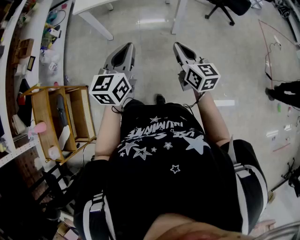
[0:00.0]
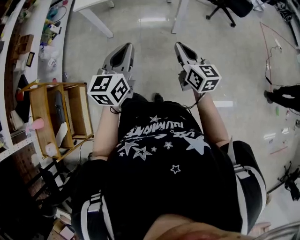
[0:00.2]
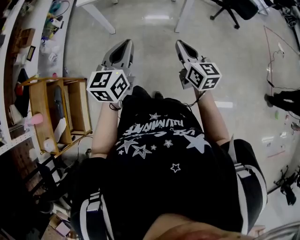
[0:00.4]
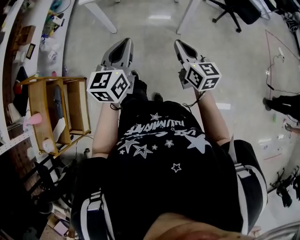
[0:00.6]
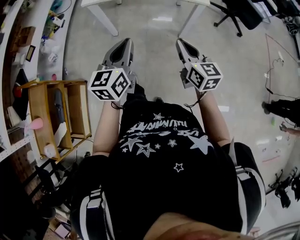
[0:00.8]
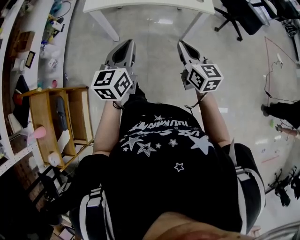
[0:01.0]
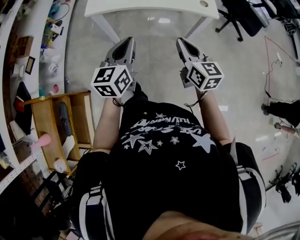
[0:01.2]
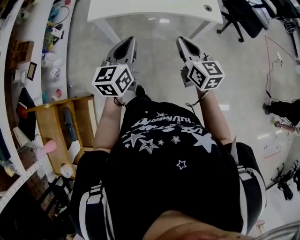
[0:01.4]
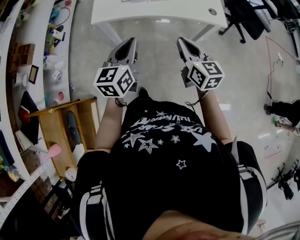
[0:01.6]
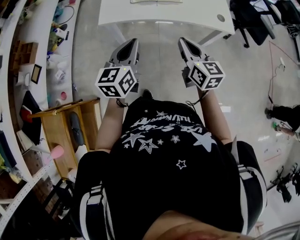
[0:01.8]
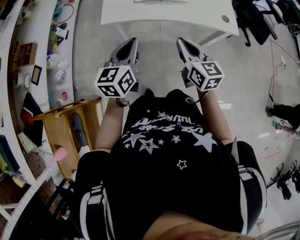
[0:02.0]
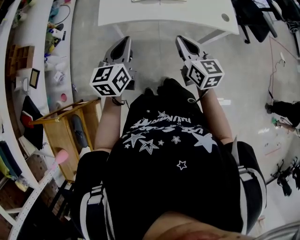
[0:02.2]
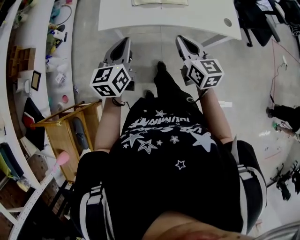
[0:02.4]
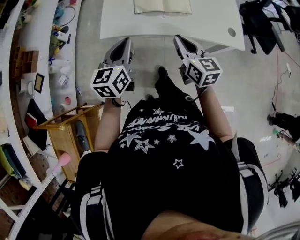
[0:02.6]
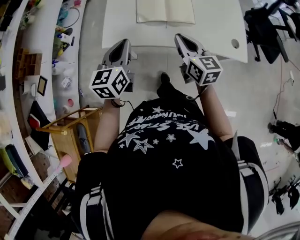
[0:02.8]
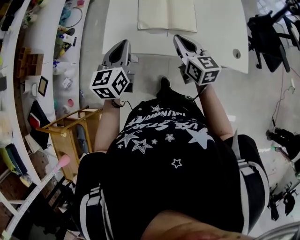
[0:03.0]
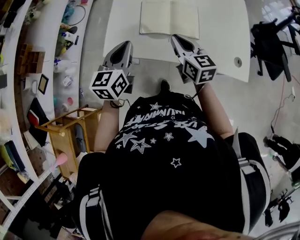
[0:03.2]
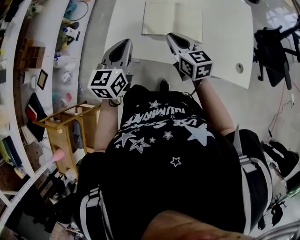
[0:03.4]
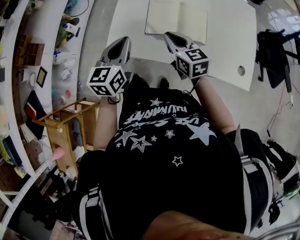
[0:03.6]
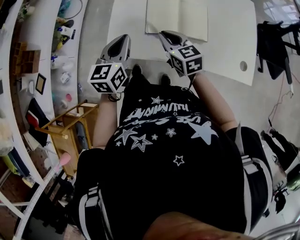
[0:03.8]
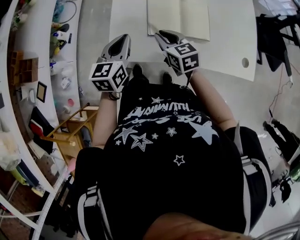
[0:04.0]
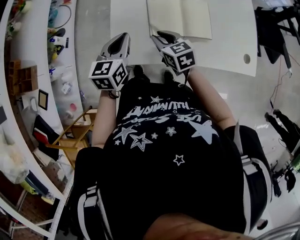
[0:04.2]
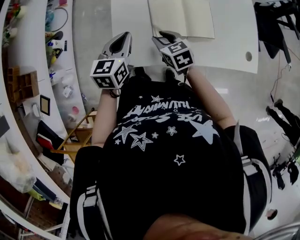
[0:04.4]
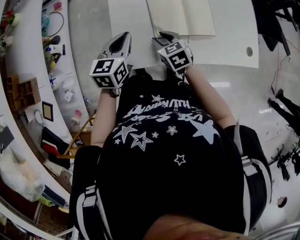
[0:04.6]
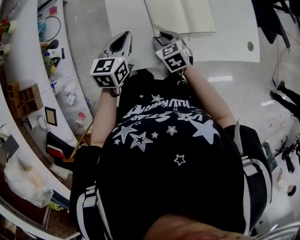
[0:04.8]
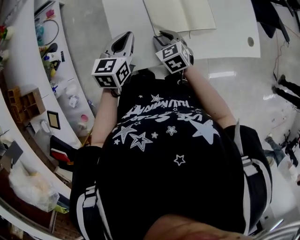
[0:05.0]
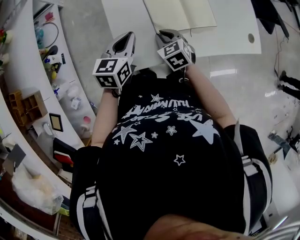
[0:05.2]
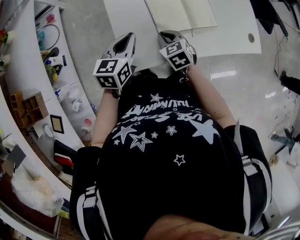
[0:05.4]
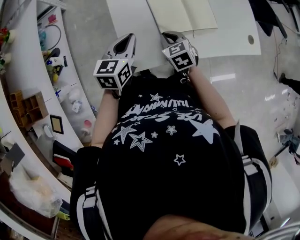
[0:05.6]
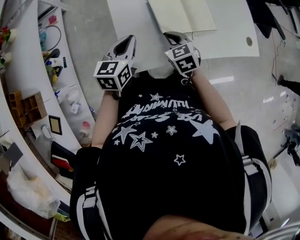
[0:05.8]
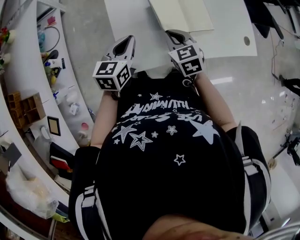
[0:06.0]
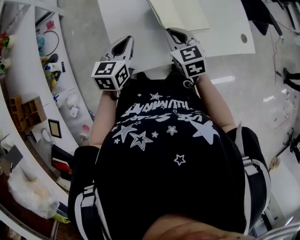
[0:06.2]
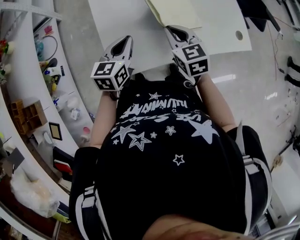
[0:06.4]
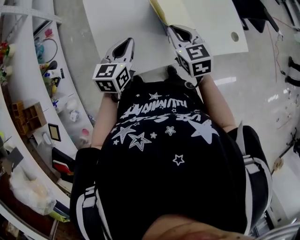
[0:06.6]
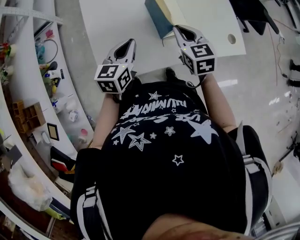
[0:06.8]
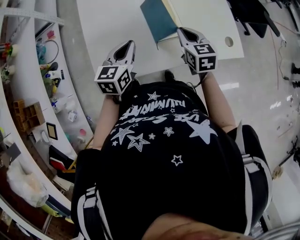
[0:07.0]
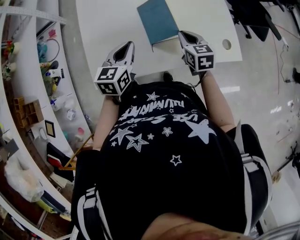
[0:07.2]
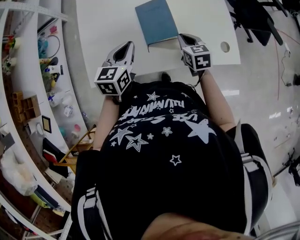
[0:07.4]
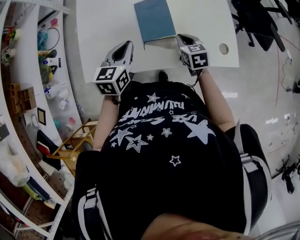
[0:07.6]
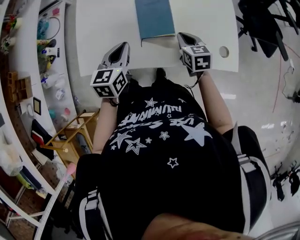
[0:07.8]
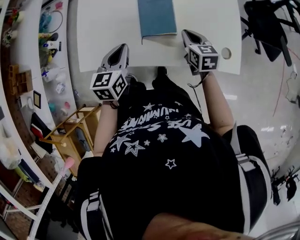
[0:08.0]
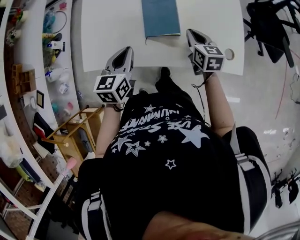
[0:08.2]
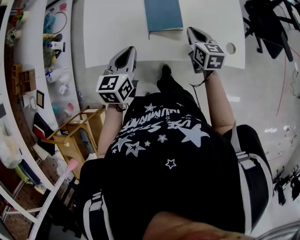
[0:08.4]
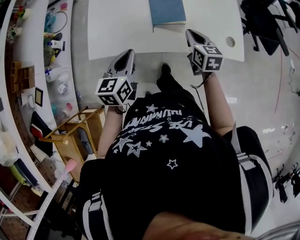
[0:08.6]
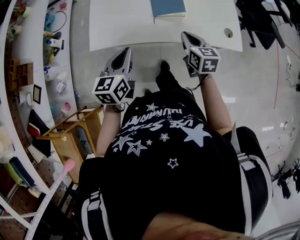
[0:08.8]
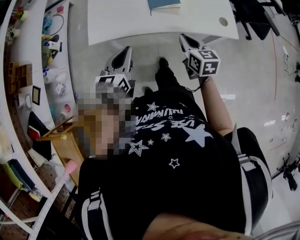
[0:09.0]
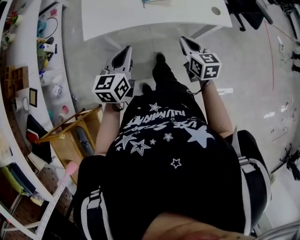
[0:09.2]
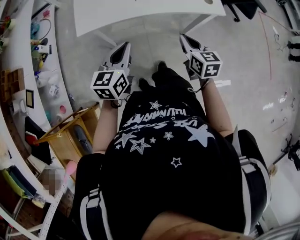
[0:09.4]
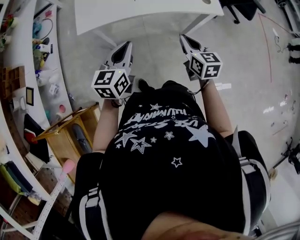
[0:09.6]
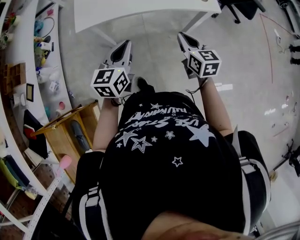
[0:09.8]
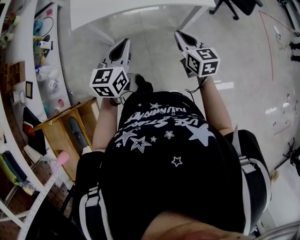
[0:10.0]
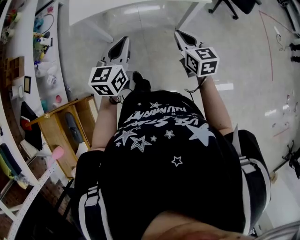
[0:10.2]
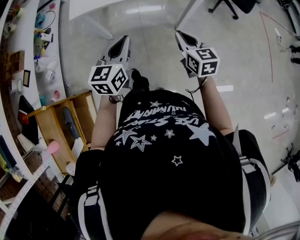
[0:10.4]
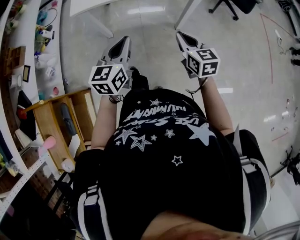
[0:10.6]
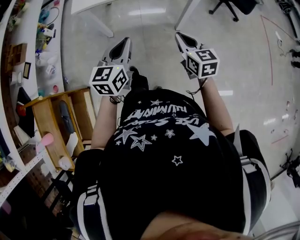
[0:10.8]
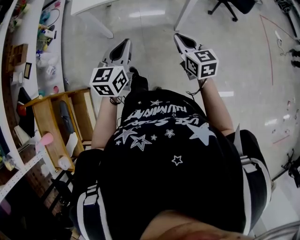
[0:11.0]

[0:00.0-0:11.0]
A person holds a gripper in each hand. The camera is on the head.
0:00.0 to 0:01.6: The two grippers go roughly 30 cm forward and to the left.
0:01.6 to 0:03.2: Both grippers travel together forward, roughly 30 cm.
0:03.2 to 0:04.8: The right gripper is displaced to the left, downward and forward by some 20 cm, tilts its fingers roughly 30 degrees downward, and opens up; the left gripper goes roughly 20 cm forward, downward and to the left, and swivels roughly 20 degrees.
0:04.8 to 0:06.2: The right gripper shifts roughly 10 cm upward, and closes its fingers.
0:06.2 to 0:07.8: Both grippers move to the right, approximately 25 cm.
0:07.8 to 0:09.4: Both grippers travel together backward, some 30 cm.
0:09.4 to 0:11.0: Both grippers travel together backward and to the right, some 25 cm.

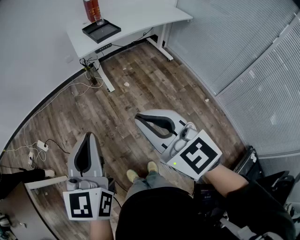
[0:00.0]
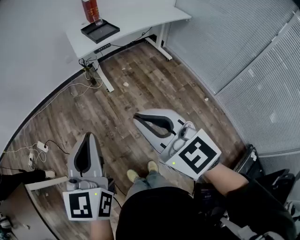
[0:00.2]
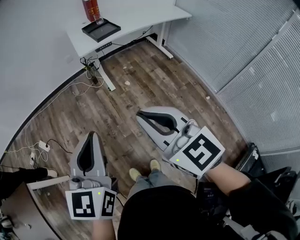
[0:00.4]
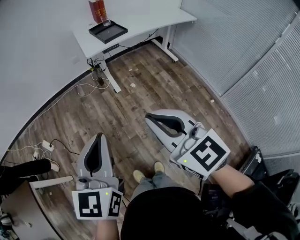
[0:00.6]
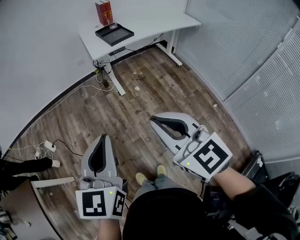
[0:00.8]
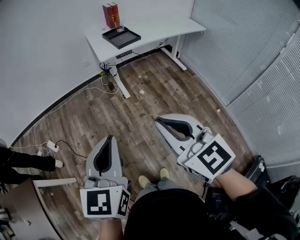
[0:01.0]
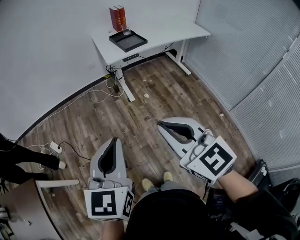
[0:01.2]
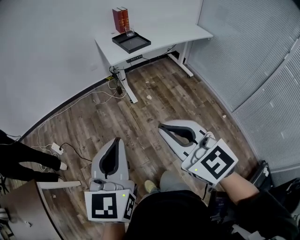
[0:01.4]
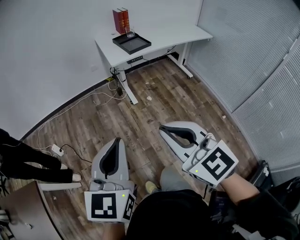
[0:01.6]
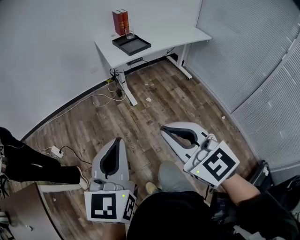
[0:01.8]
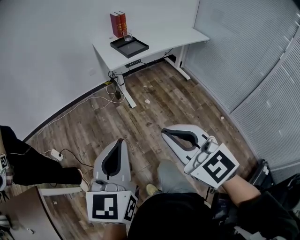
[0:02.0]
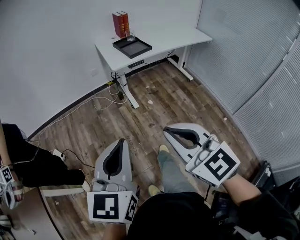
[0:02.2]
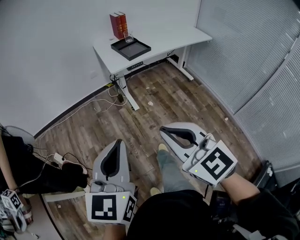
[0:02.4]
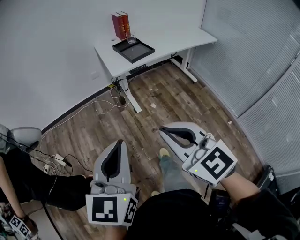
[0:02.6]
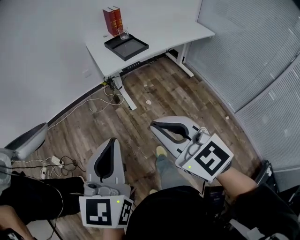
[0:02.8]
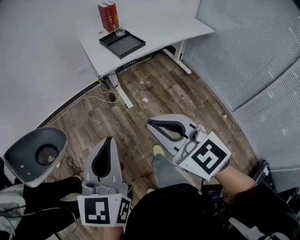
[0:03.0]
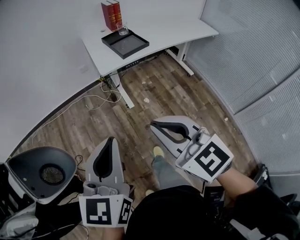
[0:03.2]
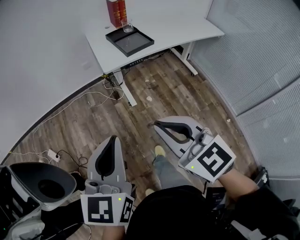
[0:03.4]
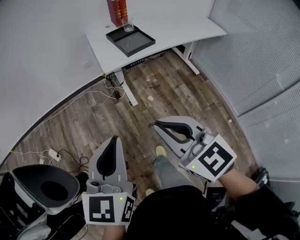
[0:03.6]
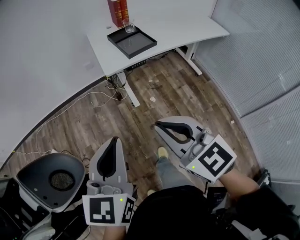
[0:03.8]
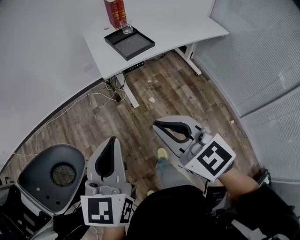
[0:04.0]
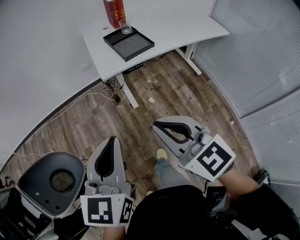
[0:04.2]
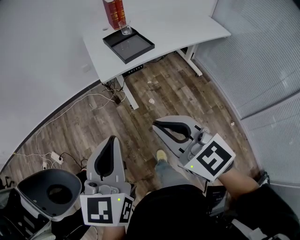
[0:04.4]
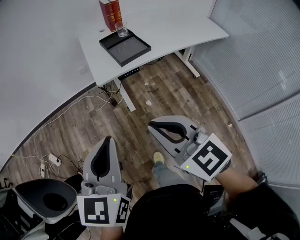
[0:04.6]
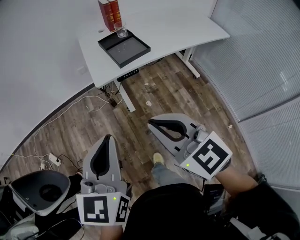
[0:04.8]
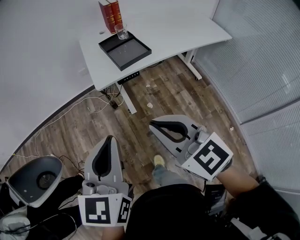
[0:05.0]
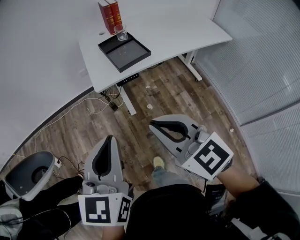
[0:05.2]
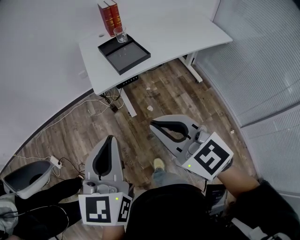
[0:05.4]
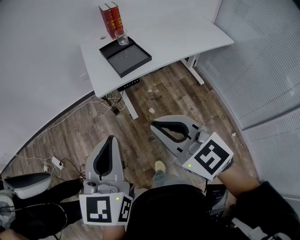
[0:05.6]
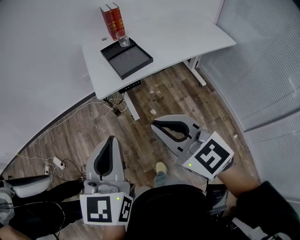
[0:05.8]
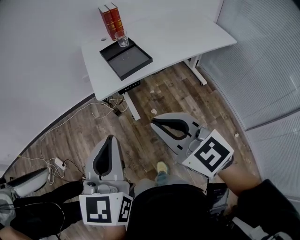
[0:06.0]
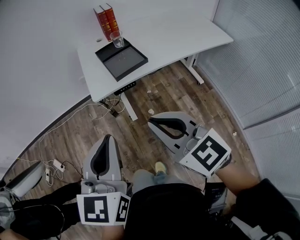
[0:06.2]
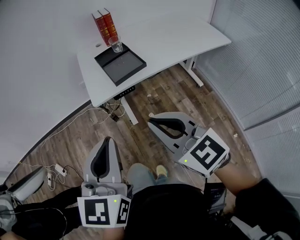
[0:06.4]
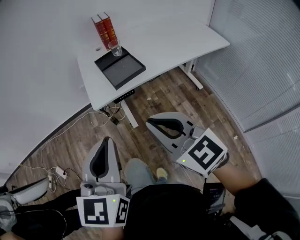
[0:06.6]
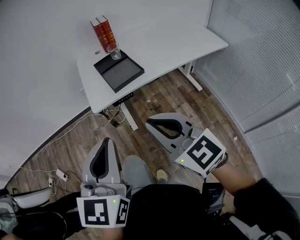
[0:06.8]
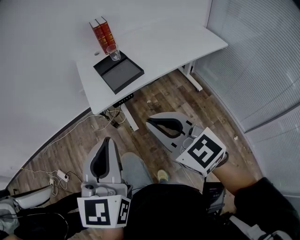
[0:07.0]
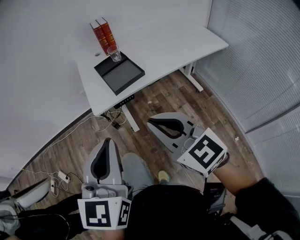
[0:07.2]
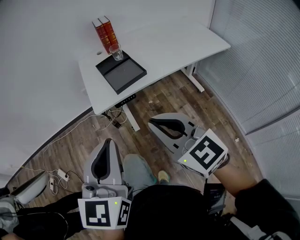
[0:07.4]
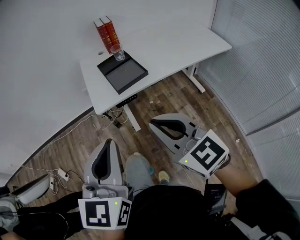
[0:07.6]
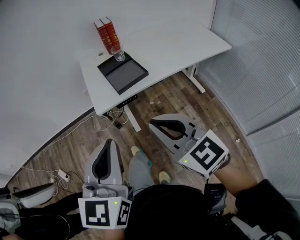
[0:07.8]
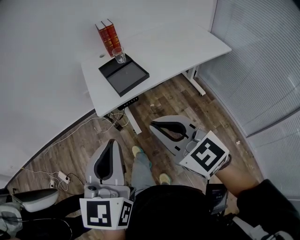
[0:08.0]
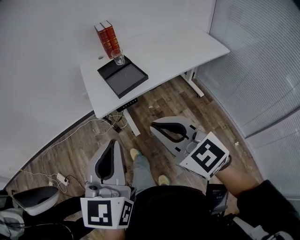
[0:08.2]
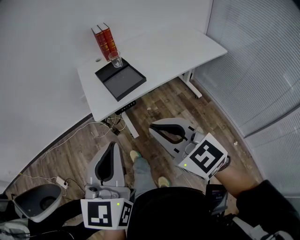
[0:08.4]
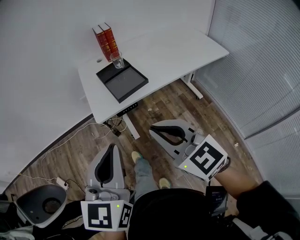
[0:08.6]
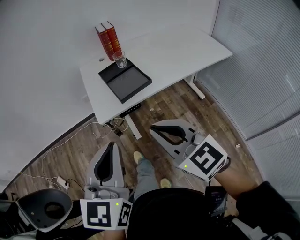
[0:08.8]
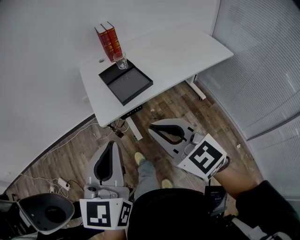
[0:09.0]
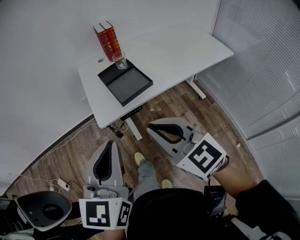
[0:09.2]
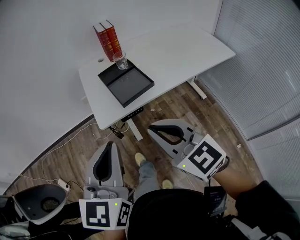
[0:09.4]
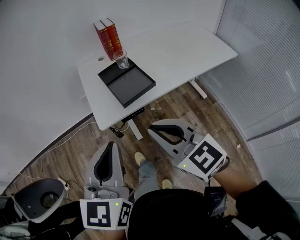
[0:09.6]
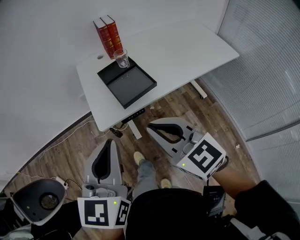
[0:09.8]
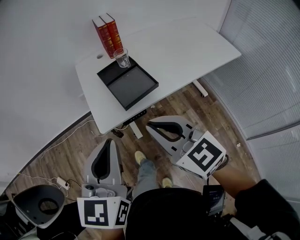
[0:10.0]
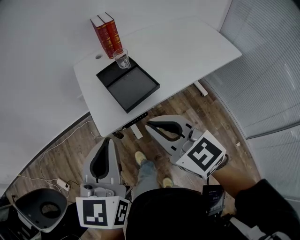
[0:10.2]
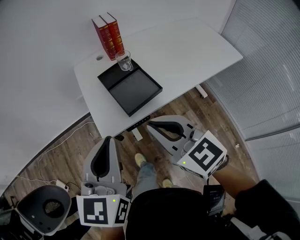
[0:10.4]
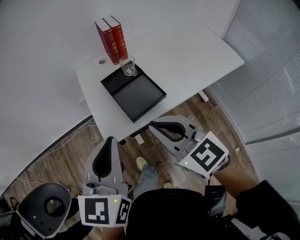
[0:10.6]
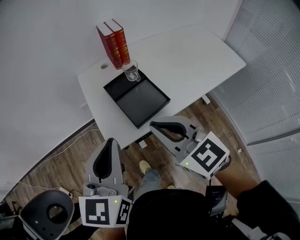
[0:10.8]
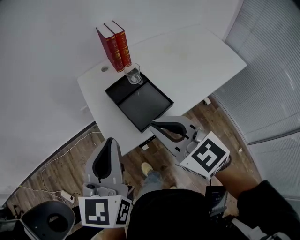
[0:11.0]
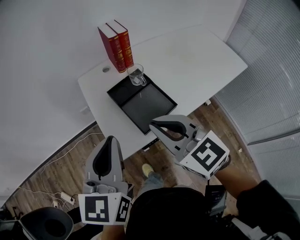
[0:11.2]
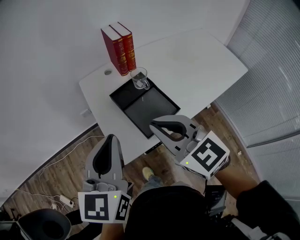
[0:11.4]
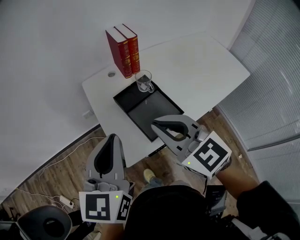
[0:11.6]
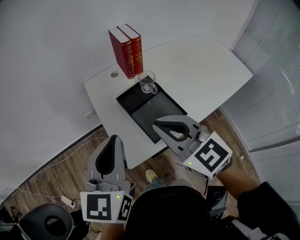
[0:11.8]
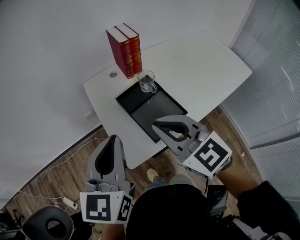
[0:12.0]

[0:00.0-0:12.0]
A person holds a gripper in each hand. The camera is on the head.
0:00.0 to 0:01.6: Both grippers move to the left, about 10 cm.
0:01.6 to 0:03.0: The grippers both shift forward by about 20 cm.
0:03.0 to 0:04.4: The grippers both shift forward and to the right by approximately 10 cm.
0:04.4 to 0:06.0: The grippers both shift to the right and forward by roughly 10 cm.
0:06.0 to 0:07.6: The grippers stay close to where they were, moving slightly.
0:07.6 to 0:09.0: Both grippers travel together forward, approximately 5 cm.
0:09.0 to 0:10.4: Both grippers travel together forward, about 15 cm.
0:10.4 to 0:12.0: The right gripper shifts about 15 cm forward and to the left. Meanwhile the left gripper travels forward by some 15 cm.

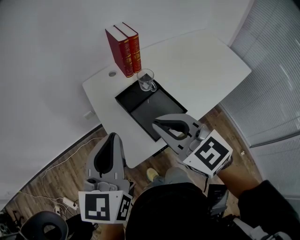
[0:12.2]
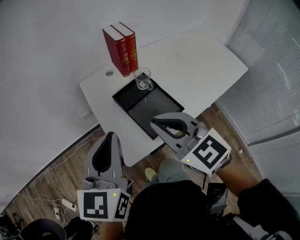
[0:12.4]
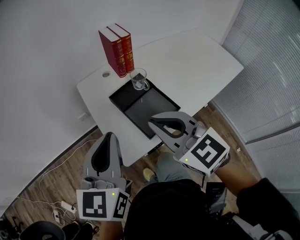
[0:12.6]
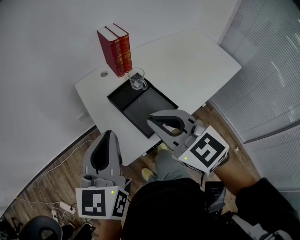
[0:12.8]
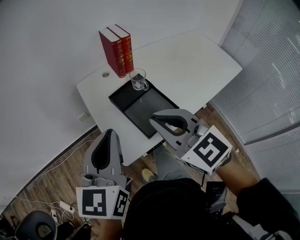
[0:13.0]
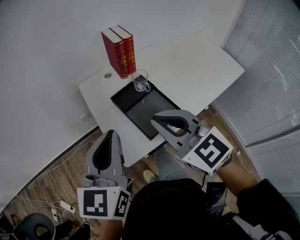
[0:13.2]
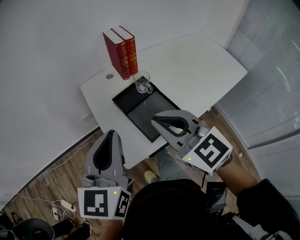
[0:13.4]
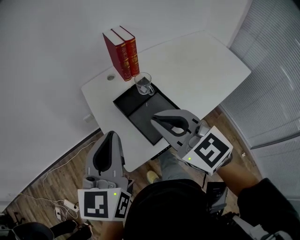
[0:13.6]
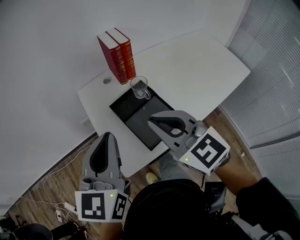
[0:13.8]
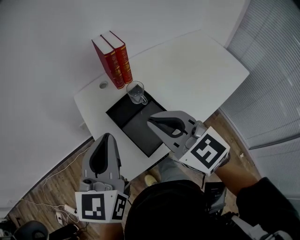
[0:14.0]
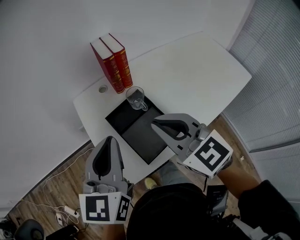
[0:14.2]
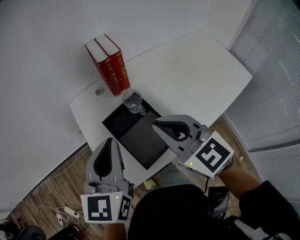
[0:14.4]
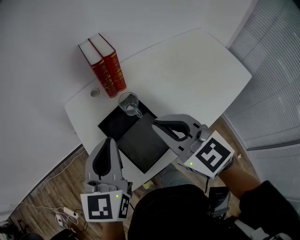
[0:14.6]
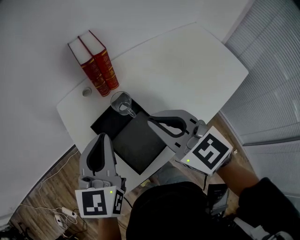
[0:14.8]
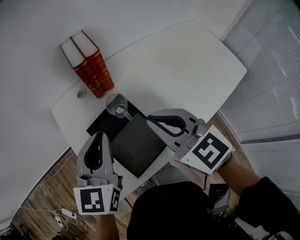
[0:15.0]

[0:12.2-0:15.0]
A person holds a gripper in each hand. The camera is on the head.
0:12.2 to 0:13.6: There are only small adjustments of the grippers.
0:13.6 to 0:15.0: The right gripper is displaced forward and to the right by about 20 cm, while the left gripper is displaced forward, to the right and downward by roughly 20 cm.
